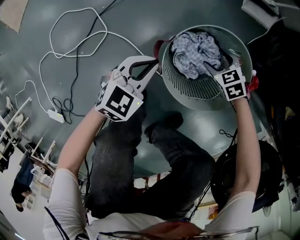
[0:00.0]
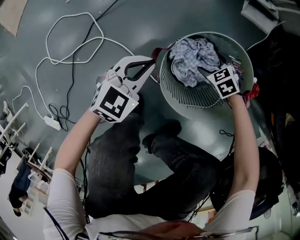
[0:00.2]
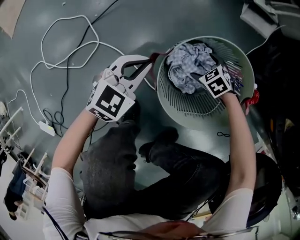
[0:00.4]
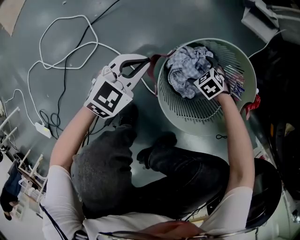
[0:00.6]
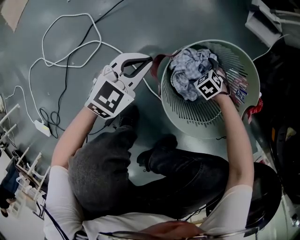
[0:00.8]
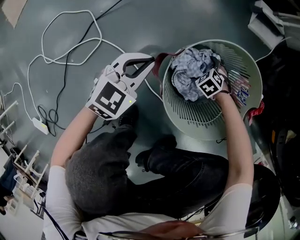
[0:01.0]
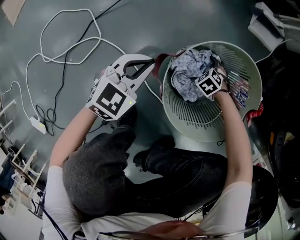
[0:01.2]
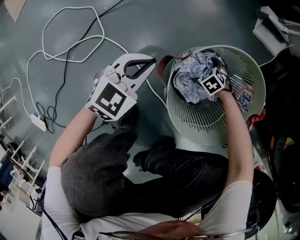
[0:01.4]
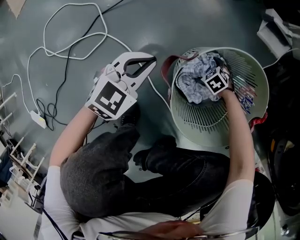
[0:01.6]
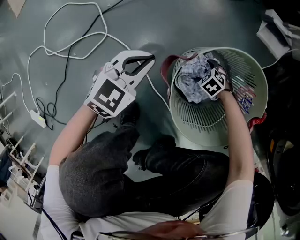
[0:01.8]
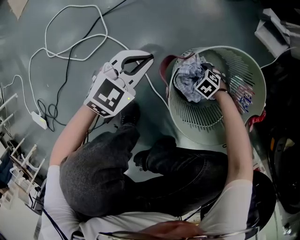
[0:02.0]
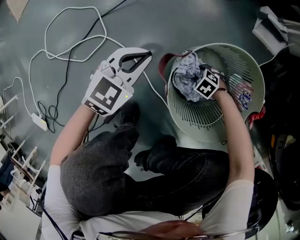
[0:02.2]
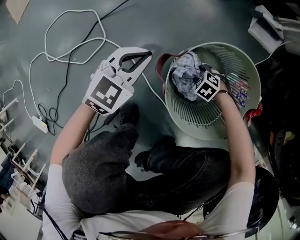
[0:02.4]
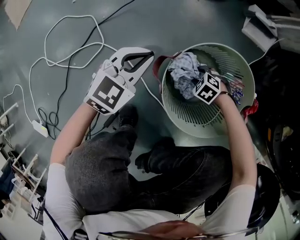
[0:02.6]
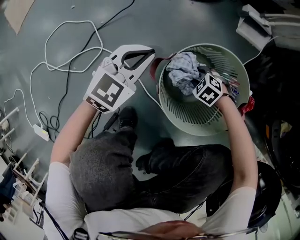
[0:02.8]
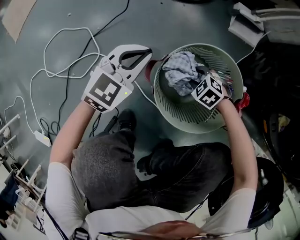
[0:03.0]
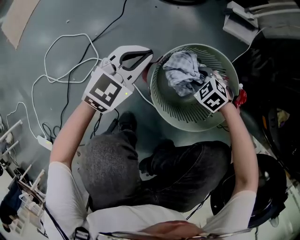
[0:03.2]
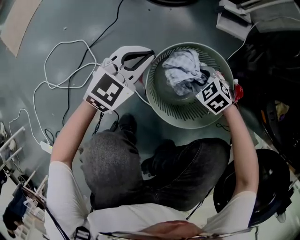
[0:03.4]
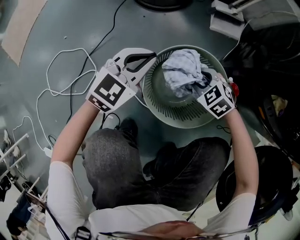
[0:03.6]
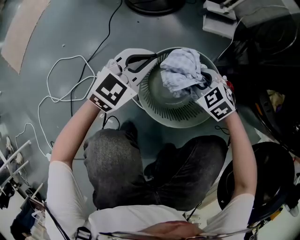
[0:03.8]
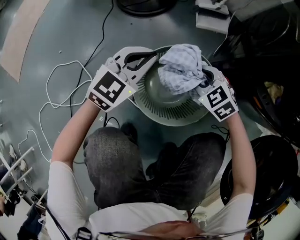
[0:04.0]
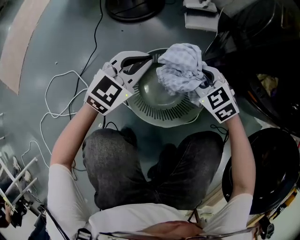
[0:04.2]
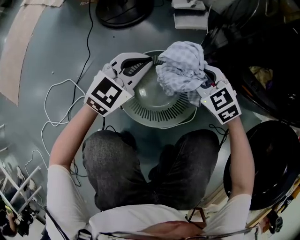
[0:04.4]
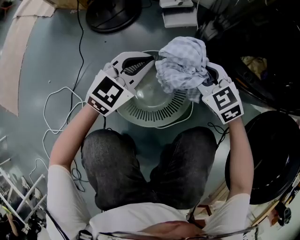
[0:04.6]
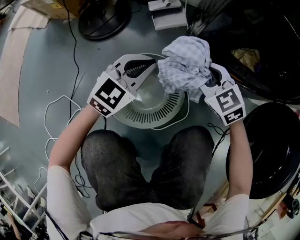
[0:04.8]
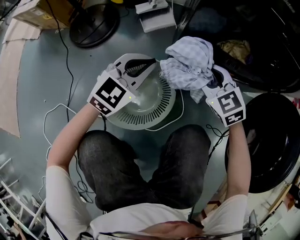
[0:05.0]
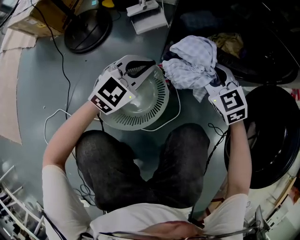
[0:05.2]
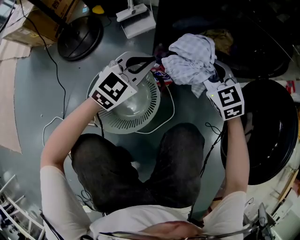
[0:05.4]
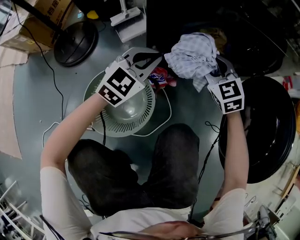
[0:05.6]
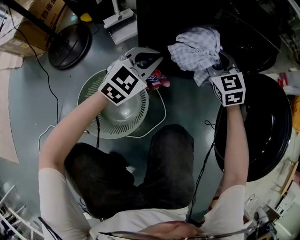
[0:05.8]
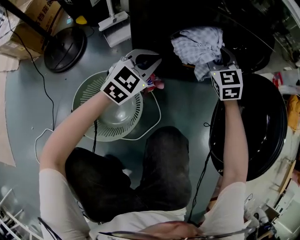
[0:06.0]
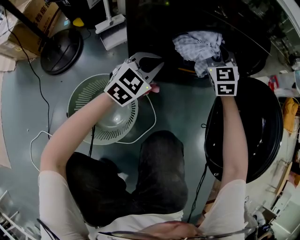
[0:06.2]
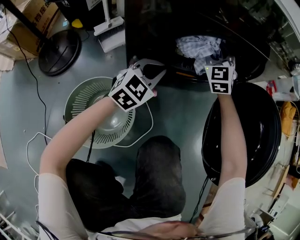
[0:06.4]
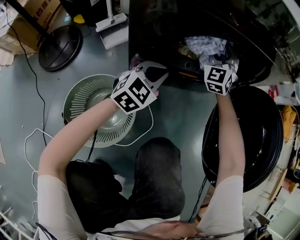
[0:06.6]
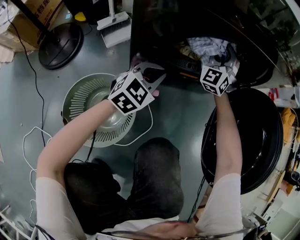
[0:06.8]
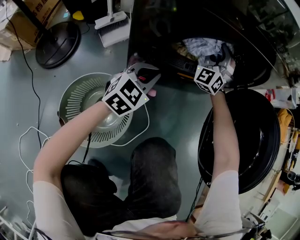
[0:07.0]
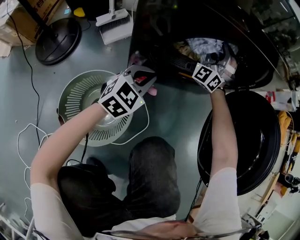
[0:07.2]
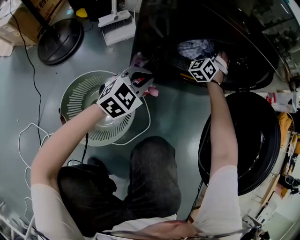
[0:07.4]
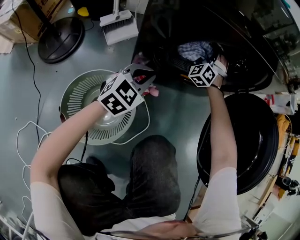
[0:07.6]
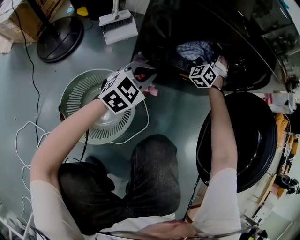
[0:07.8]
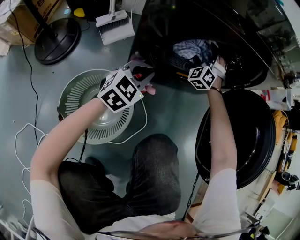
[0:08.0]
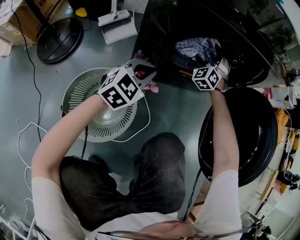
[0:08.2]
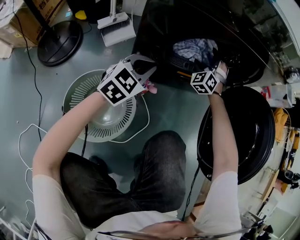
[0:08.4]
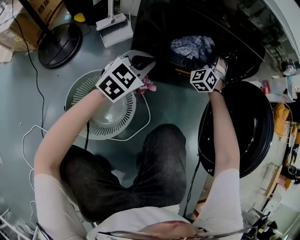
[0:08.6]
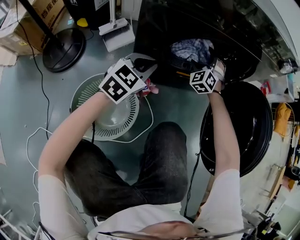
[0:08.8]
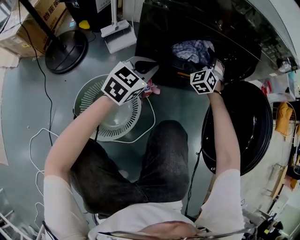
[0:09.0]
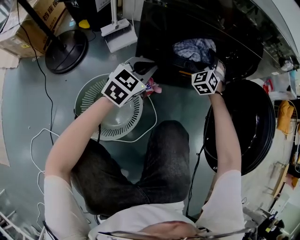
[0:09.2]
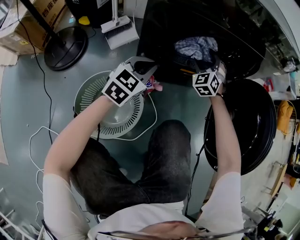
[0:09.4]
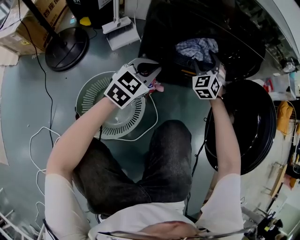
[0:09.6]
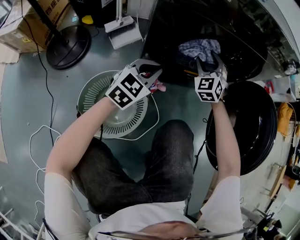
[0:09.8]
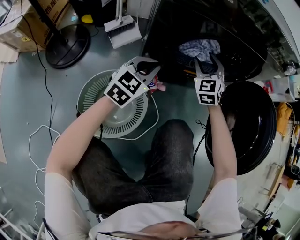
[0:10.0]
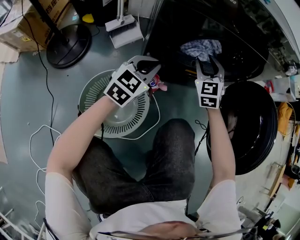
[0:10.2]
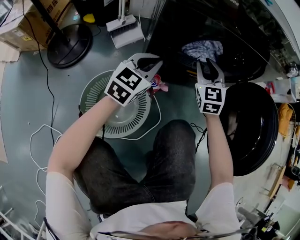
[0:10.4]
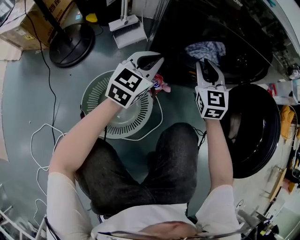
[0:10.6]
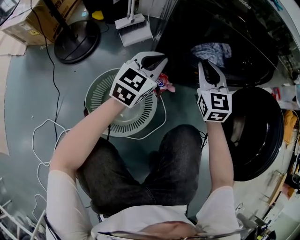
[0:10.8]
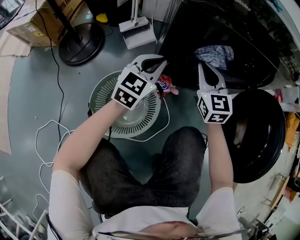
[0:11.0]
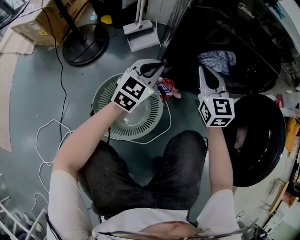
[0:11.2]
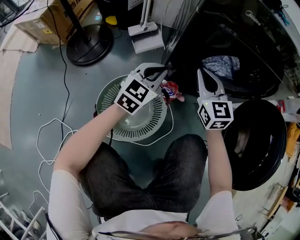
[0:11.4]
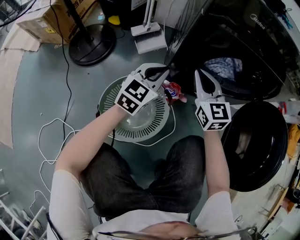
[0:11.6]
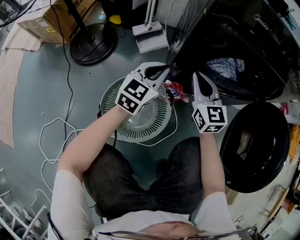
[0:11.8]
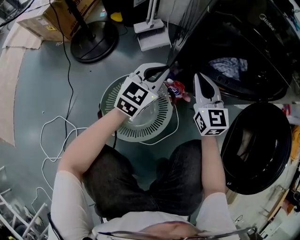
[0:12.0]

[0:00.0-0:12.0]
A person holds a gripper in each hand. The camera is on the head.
0:00.0 to 0:01.6: The right gripper is displaced downward by about 20 cm, swivels some 20 degrees, and opens. The left gripper shifts about 10 cm downward.
0:01.6 to 0:03.0: The left gripper travels upward by approximately 10 cm. The right gripper goes some 15 cm upward, and closes its fingers.
0:03.0 to 0:04.4: The right gripper heads upward, covering roughly 25 cm, and changes its angle by some 40 degrees; the left gripper changes place by approximately 20 cm, and changes its angle by roughly 20 degrees.
0:04.4 to 0:06.0: The left gripper moves some 30 cm, and swivels about 20 degrees. Meanwhile the right gripper ends up roughly 35 cm from where it was, and turns by approximately 50 degrees.
0:06.0 to 0:07.6: The left gripper goes some 5 cm downward. Meanwhile the right gripper shifts approximately 15 cm forward and downward, turns by some 40 degrees, and opens.
0:07.6 to 0:09.0: The left gripper shifts roughly 10 cm upward, while the right gripper goes approximately 5 cm backward.
0:09.0 to 0:10.4: The right gripper moves backward and upward, some 10 cm, rotates approximately 30 degrees, and closes its fingers.
0:10.4 to 0:12.0: The right gripper shifts some 15 cm to the left and backward, and rotates some 30 degrees, while the left gripper travels to the left by roughly 10 cm.

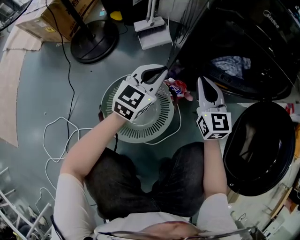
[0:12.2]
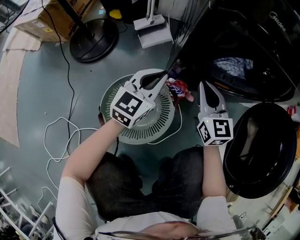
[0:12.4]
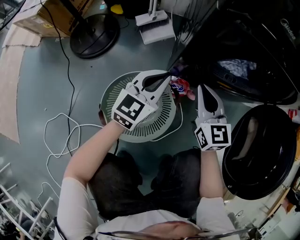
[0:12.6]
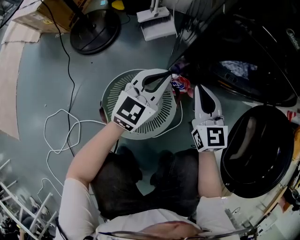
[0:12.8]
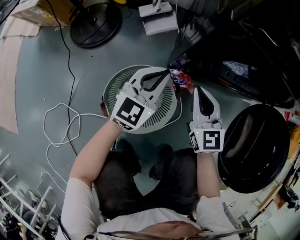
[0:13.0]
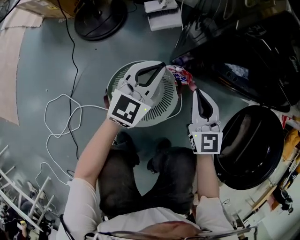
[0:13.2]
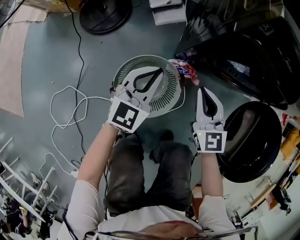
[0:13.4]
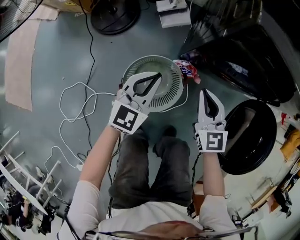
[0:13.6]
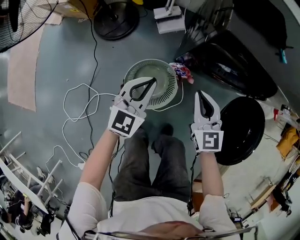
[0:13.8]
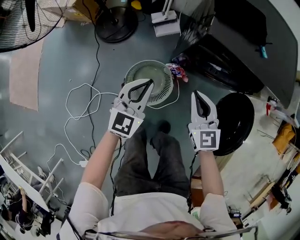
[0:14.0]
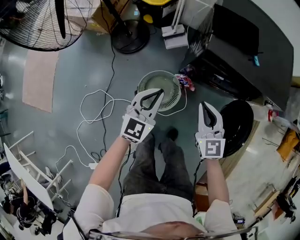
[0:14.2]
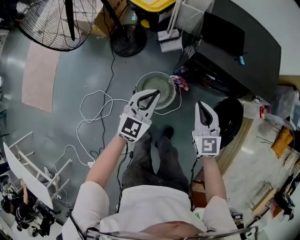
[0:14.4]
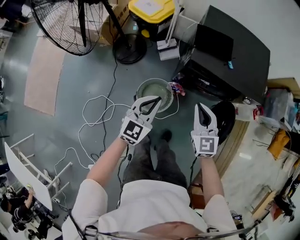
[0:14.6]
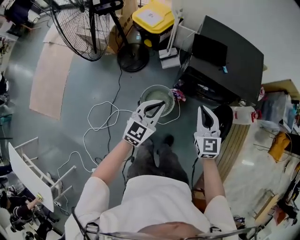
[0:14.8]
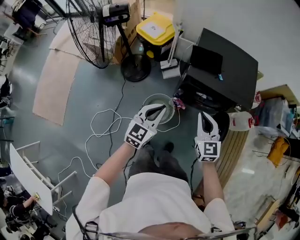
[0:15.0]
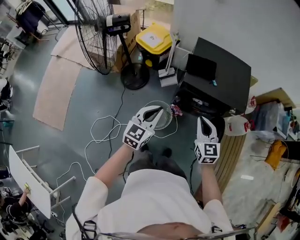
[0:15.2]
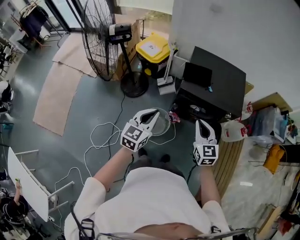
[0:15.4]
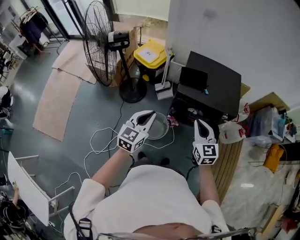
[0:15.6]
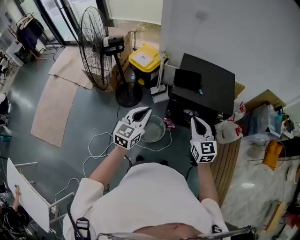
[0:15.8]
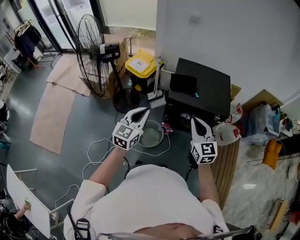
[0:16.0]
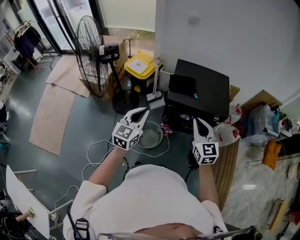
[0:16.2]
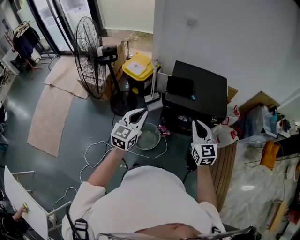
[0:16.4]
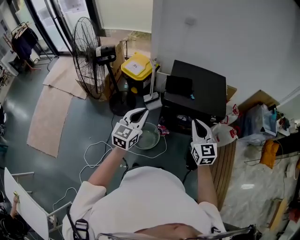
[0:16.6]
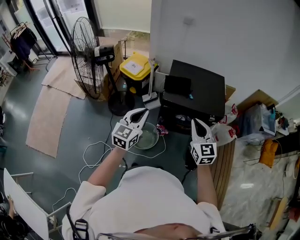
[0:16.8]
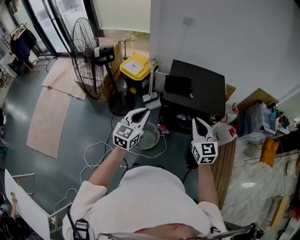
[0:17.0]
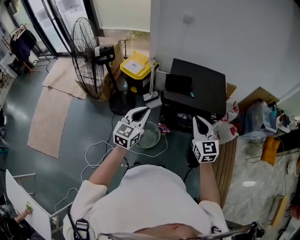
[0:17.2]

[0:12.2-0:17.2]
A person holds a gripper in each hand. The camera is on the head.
0:12.2 to 0:13.8: The two grippers go roughly 20 cm upward and backward.
0:13.8 to 0:15.6: Both grippers travel together upward, roughly 50 cm.
0:15.6 to 0:17.2: The right gripper is displaced upward by some 5 cm. The left gripper changes place by some 5 cm.

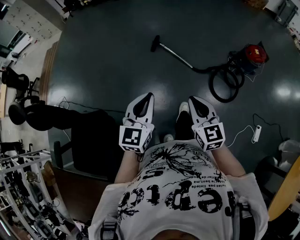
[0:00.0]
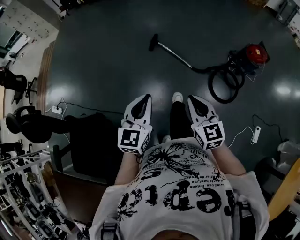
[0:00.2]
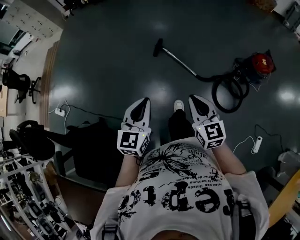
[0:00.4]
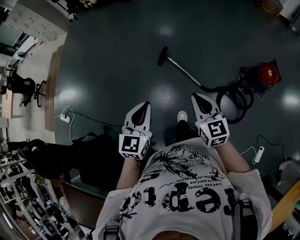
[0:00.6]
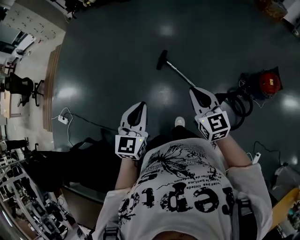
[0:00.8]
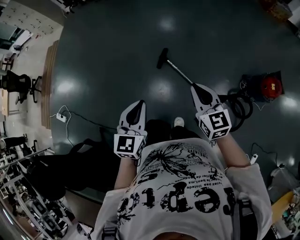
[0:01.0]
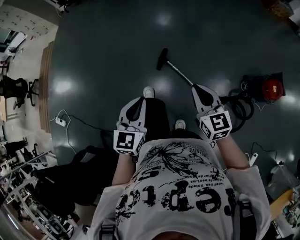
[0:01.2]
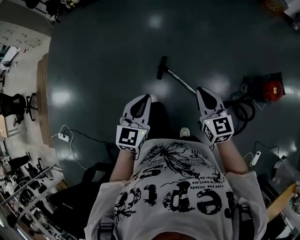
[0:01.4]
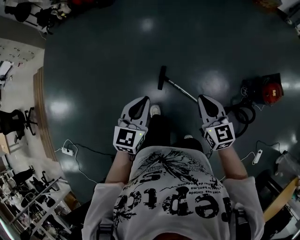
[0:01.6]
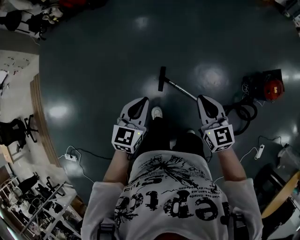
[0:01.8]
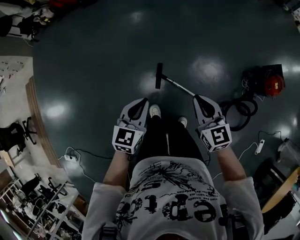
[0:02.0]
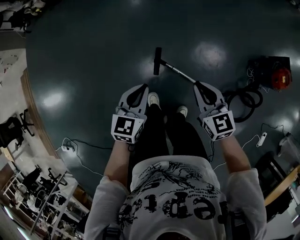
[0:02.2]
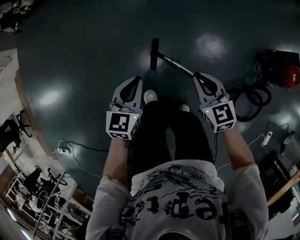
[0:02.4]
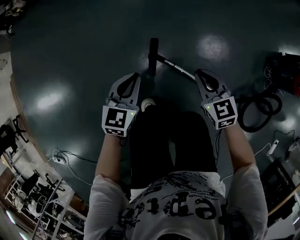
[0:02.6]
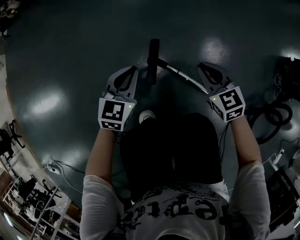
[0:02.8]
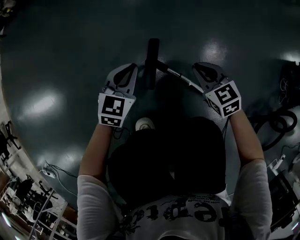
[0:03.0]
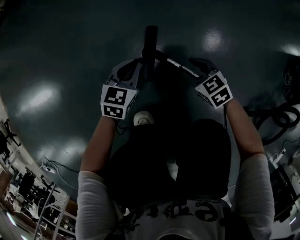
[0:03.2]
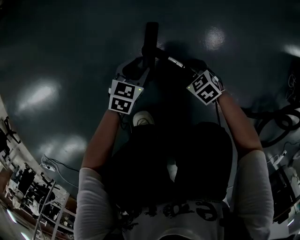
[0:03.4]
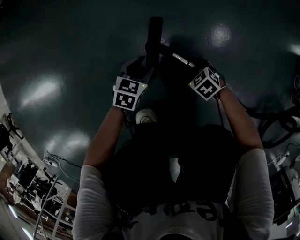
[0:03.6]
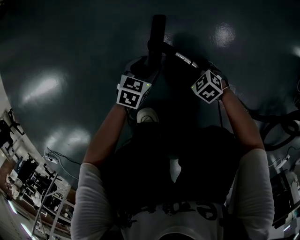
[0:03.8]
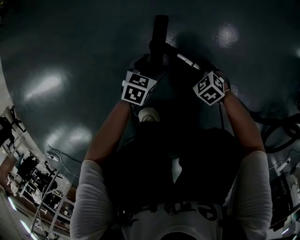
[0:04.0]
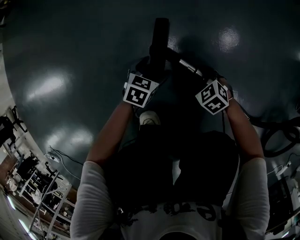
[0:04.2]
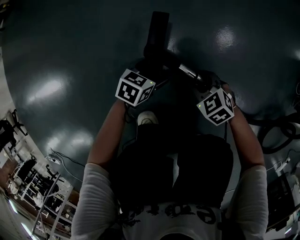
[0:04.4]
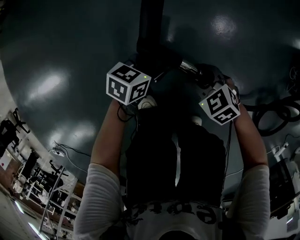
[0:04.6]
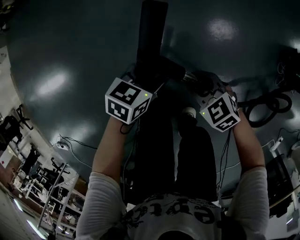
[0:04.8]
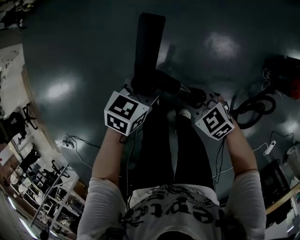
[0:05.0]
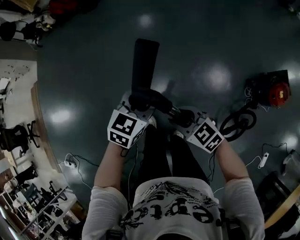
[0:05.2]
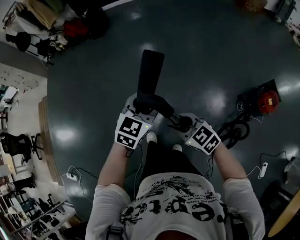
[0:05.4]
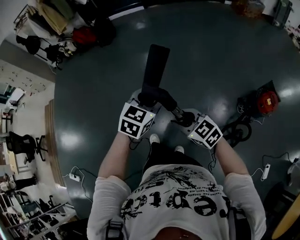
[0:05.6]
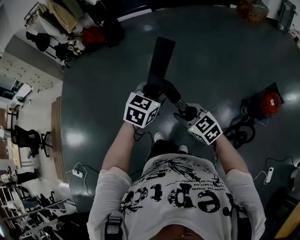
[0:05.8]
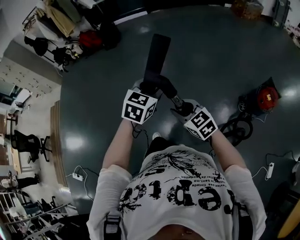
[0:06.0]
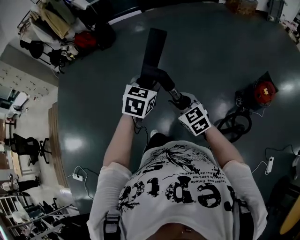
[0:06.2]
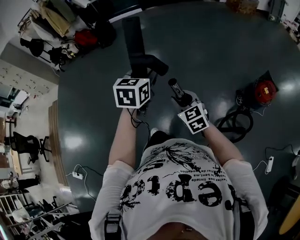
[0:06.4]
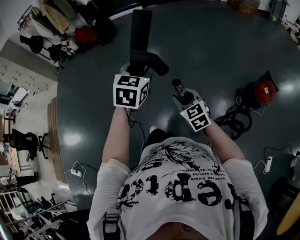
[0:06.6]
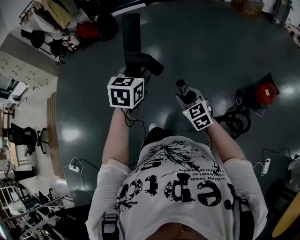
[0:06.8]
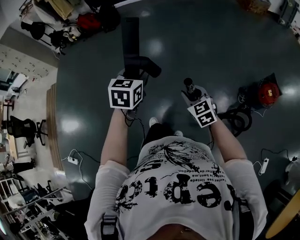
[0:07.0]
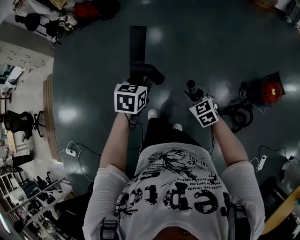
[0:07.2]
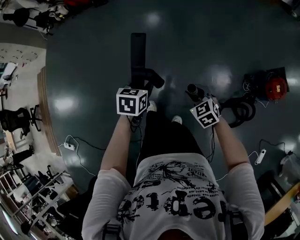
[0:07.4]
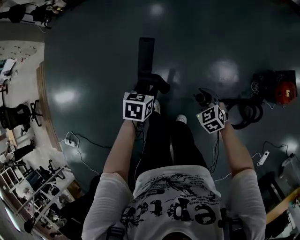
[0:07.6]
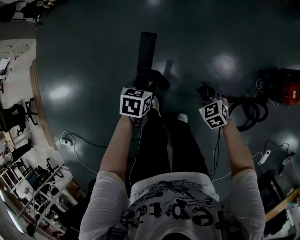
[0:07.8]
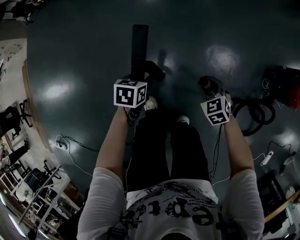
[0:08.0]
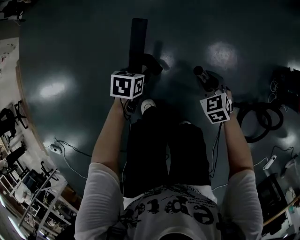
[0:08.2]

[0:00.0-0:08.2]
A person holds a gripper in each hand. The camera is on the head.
0:00.0 to 0:01.6: Both grippers are carried forward, approximately 70 cm.
0:01.6 to 0:03.2: Both grippers move downward, some 80 cm. The right gripper changes its angle by approximately 40 degrees, and opens up, while the left gripper swivels approximately 20 degrees.
0:03.2 to 0:05.0: The grippers both shift upward by roughly 50 cm. The right gripper opens, then closes once more, while the left gripper opens.
0:05.0 to 0:06.6: The grippers both shift upward by roughly 40 cm. The left gripper changes its angle by some 30 degrees, while the right gripper swivels about 30 degrees.
0:06.6 to 0:08.2: Both grippers travel together downward, roughly 70 cm. The right gripper changes its angle by some 30 degrees, while the left gripper angles its fingers downward, by some 30 degrees.
